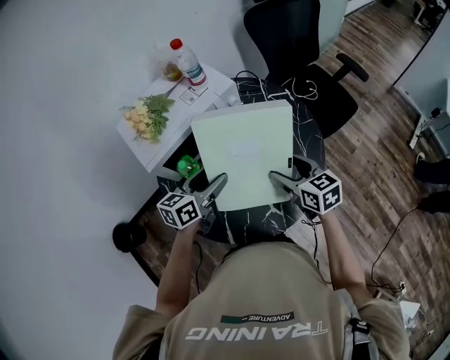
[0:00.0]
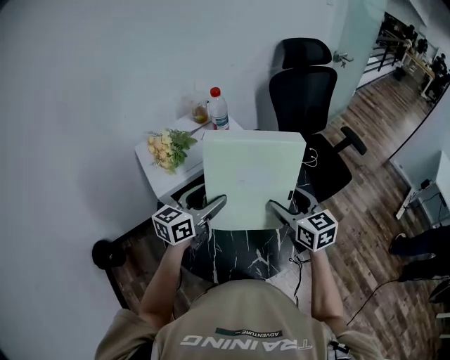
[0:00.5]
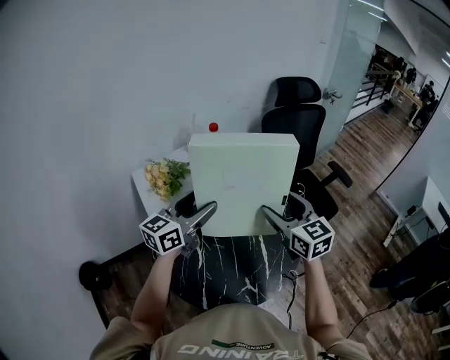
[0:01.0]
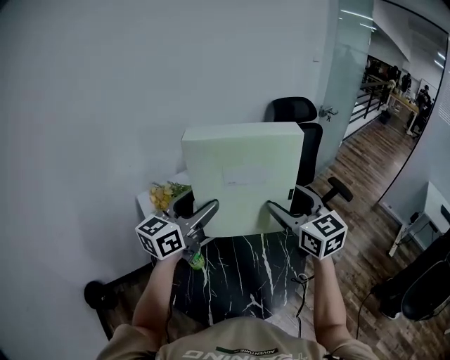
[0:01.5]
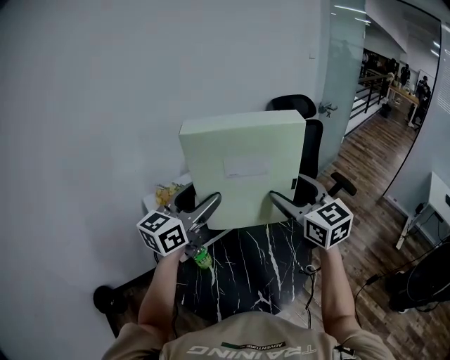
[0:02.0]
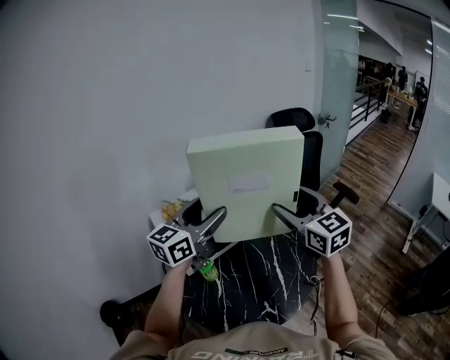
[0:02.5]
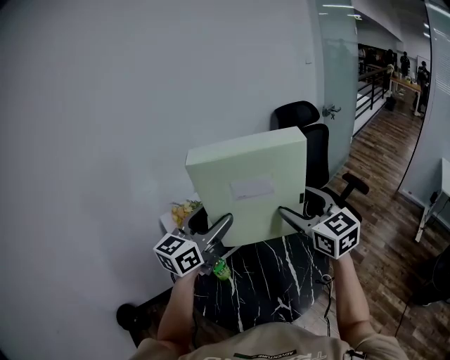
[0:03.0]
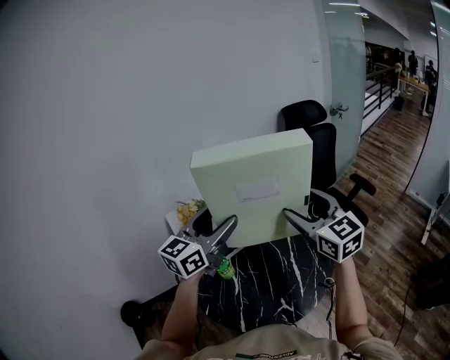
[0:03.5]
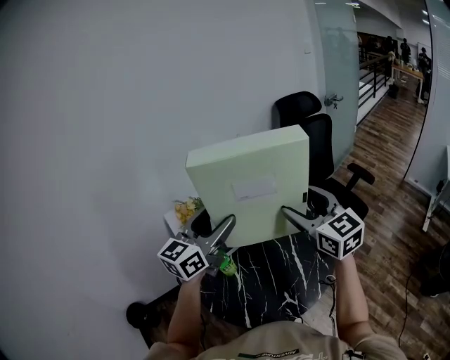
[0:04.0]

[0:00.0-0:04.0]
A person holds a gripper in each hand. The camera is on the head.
0:00.0 to 0:02.0: Both grippers travel together upward, roughly 30 cm. The left gripper turns by some 30 degrees. The right gripper rotates some 40 degrees.
0:02.0 to 0:04.0: The grippers stay close to where they were, moving slightly.

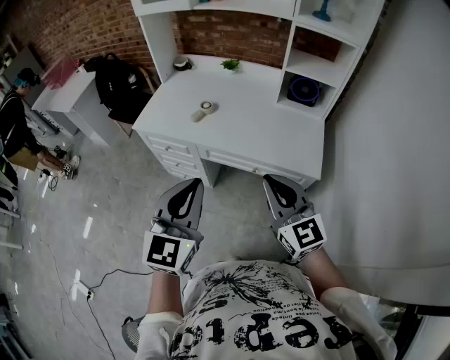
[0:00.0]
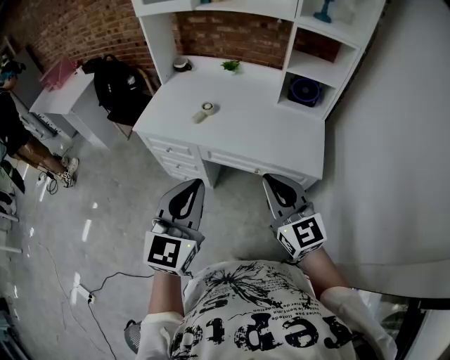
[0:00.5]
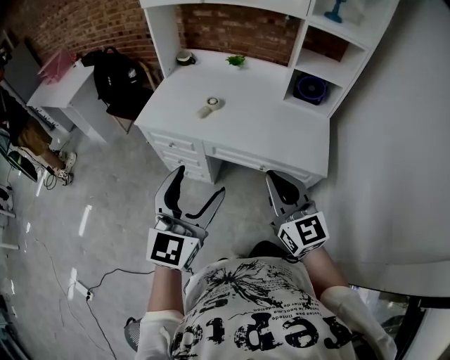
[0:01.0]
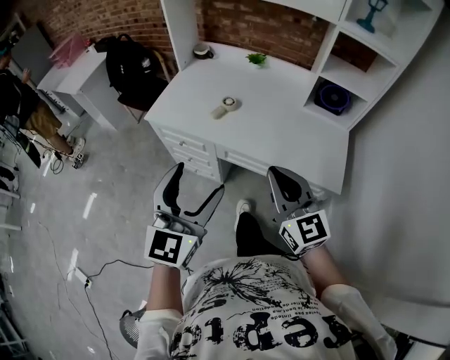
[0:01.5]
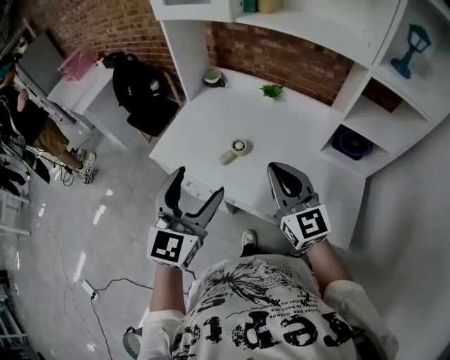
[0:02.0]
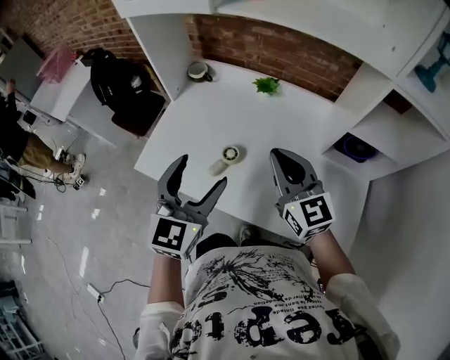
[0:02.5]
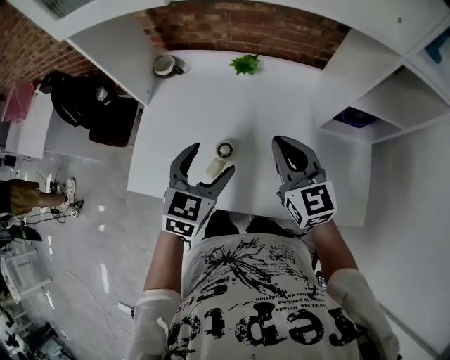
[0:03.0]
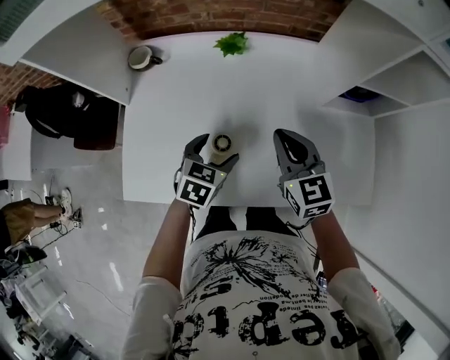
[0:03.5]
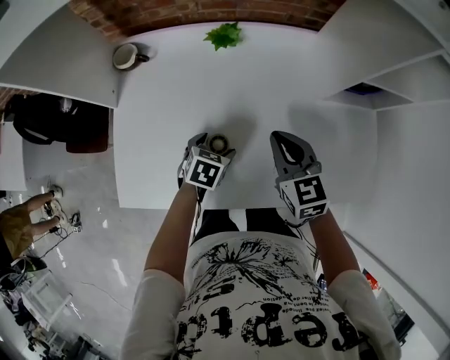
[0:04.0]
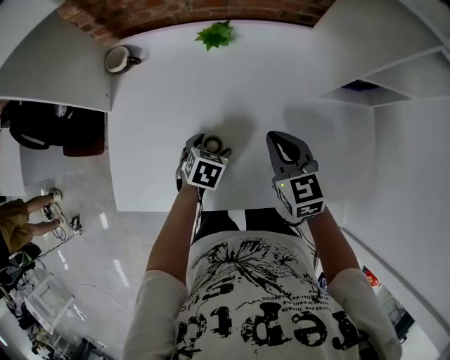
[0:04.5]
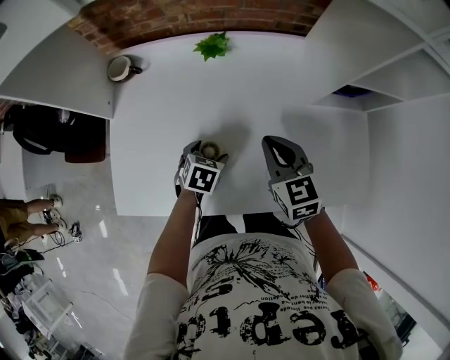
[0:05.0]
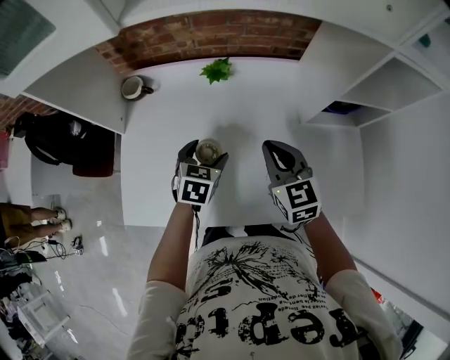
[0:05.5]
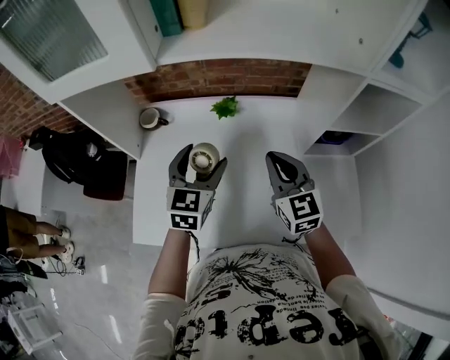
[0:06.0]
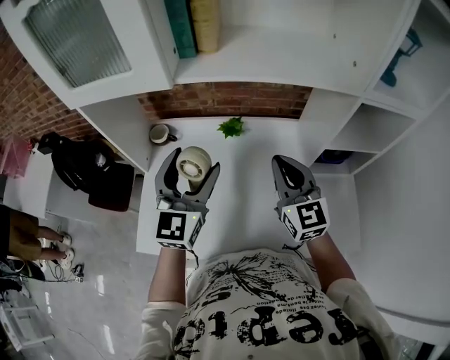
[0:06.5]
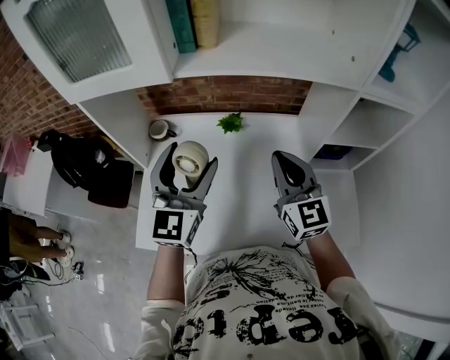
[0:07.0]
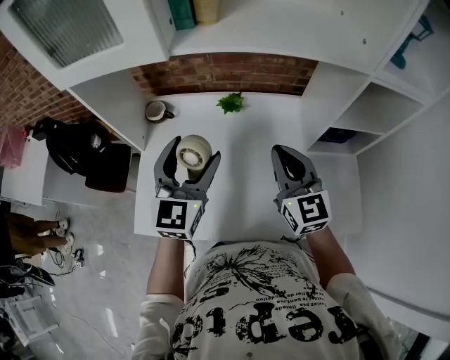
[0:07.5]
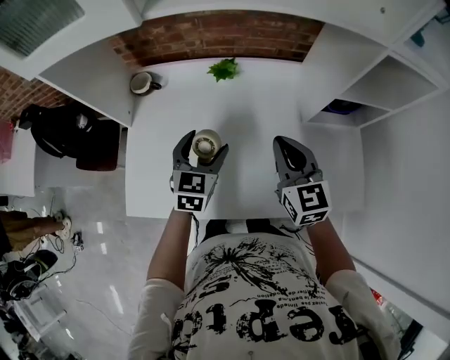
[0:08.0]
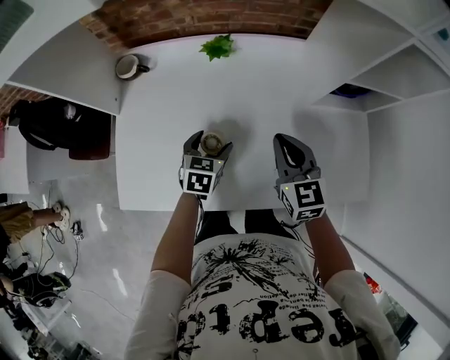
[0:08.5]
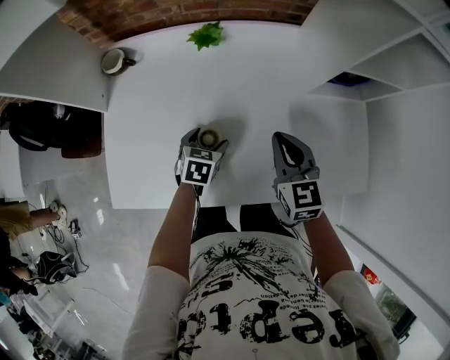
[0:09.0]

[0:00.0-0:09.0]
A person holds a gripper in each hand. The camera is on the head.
0:00.0 to 0:02.0: The grippers both shift forward by roughly 35 cm. The left gripper opens its fingers.
0:02.0 to 0:04.5: The left gripper is displaced downward by approximately 40 cm, and tilts its fingers some 60 degrees downward, while the right gripper changes place by roughly 35 cm, and swivels some 40 degrees.
0:04.5 to 0:07.0: The left gripper moves upward, some 40 cm, and tips its fingers upward by roughly 70 degrees, while the right gripper heads upward, covering some 25 cm, and tilts its fingers about 30 degrees upward.
0:07.0 to 0:09.0: The right gripper moves downward, some 20 cm, and swivels approximately 30 degrees; the left gripper moves downward, approximately 40 cm, and tilts its fingers approximately 60 degrees downward.

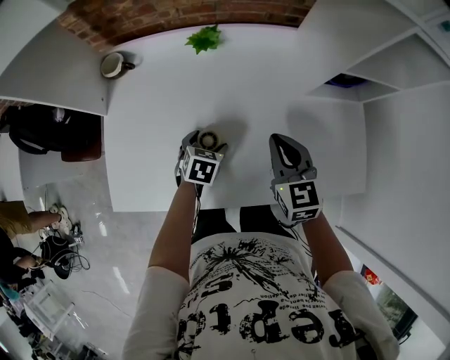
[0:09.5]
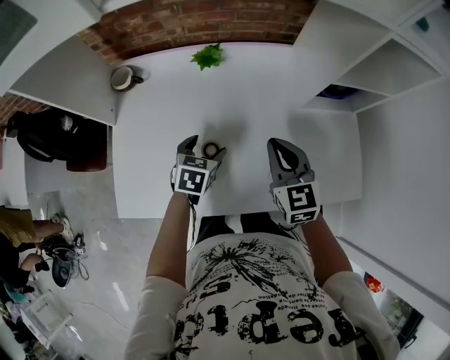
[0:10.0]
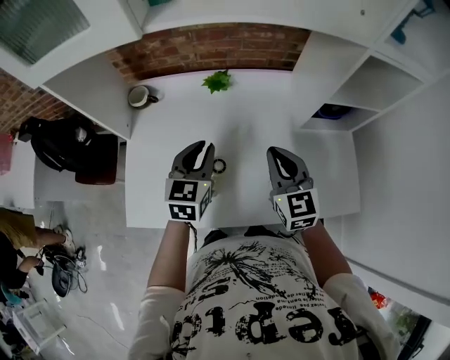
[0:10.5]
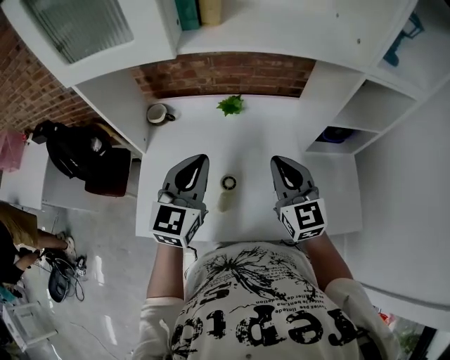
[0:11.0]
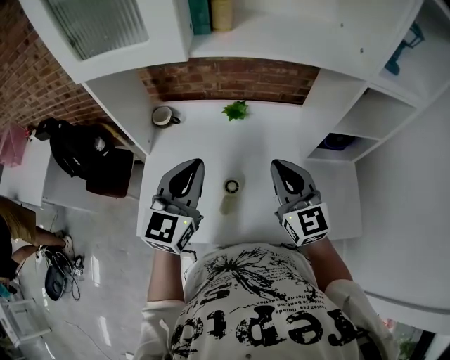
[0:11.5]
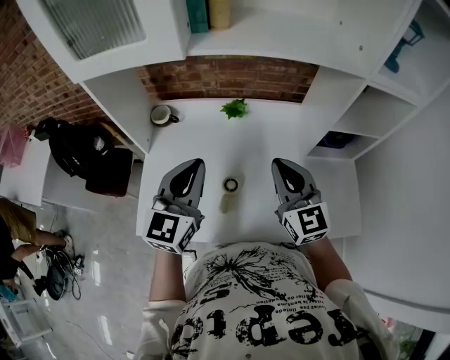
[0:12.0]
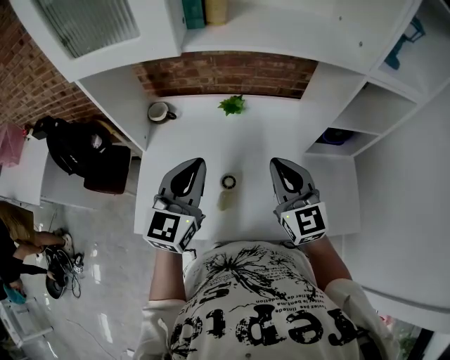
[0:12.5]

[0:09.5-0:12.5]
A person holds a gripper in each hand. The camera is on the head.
0:09.5 to 0:11.0: The left gripper shifts about 35 cm upward, tilts its fingers roughly 50 degrees upward, and closes its fingers. Meanwhile the right gripper travels upward by approximately 15 cm, and turns by about 20 degrees.
0:11.0 to 0:12.5: The grippers move only a little.

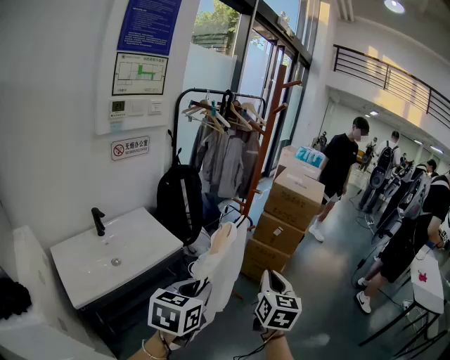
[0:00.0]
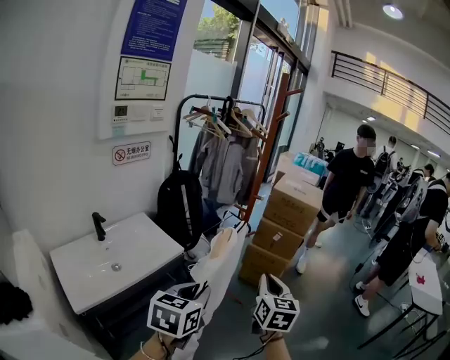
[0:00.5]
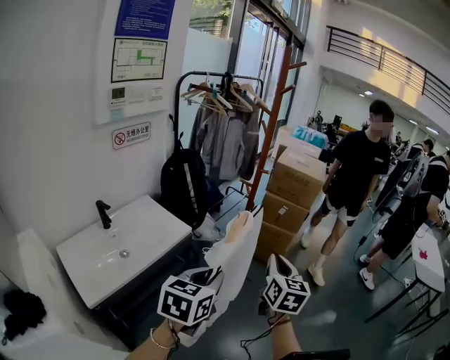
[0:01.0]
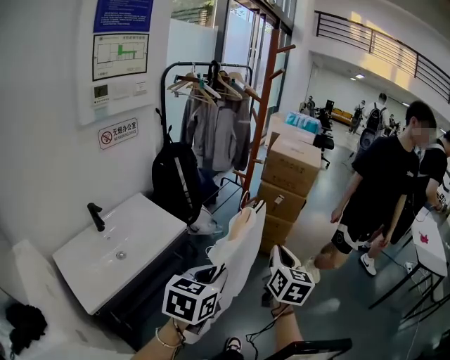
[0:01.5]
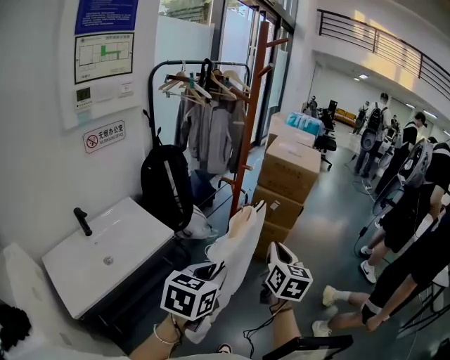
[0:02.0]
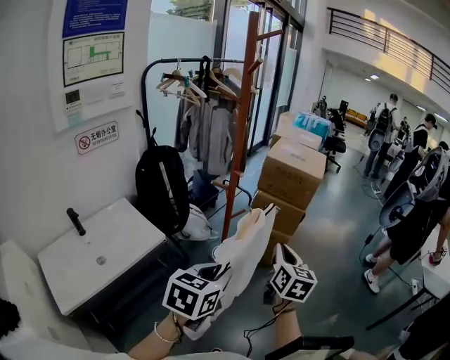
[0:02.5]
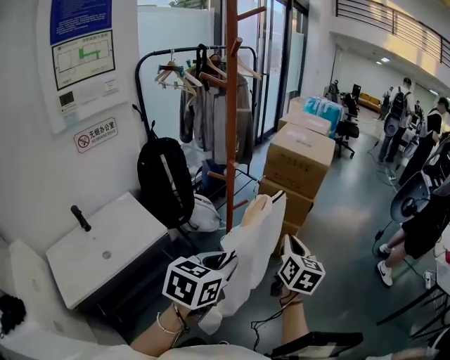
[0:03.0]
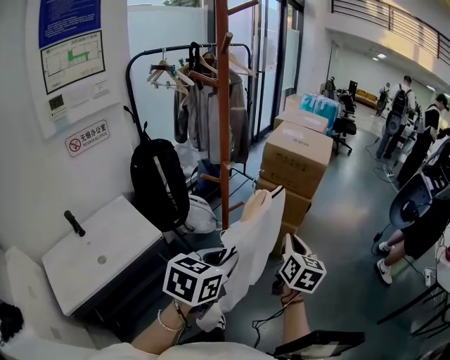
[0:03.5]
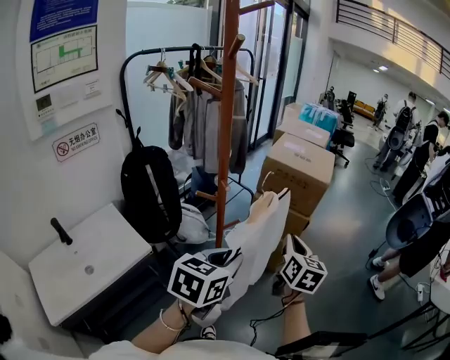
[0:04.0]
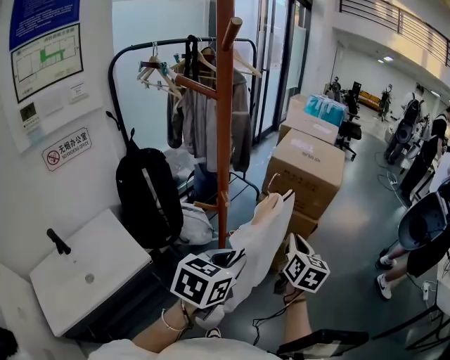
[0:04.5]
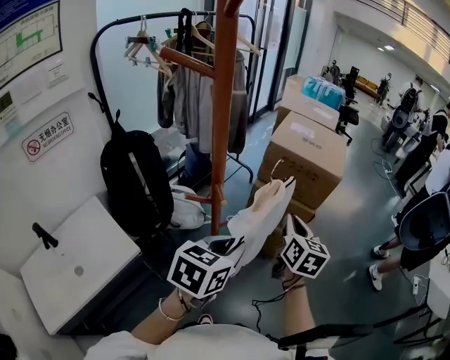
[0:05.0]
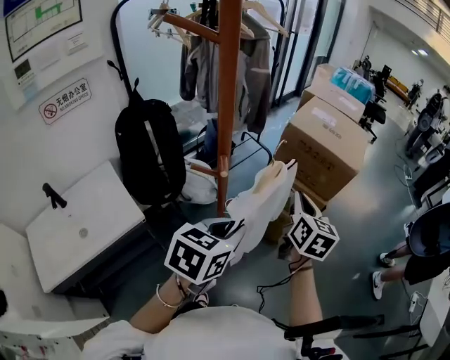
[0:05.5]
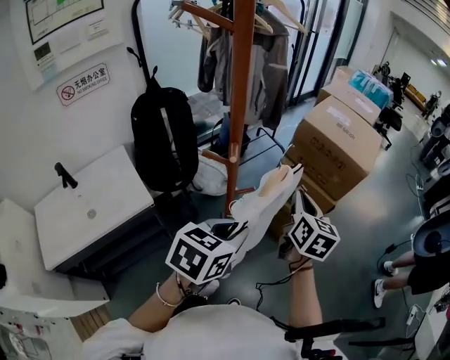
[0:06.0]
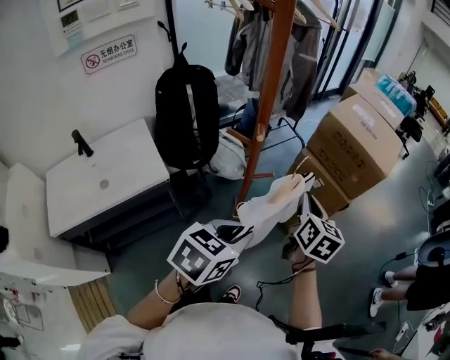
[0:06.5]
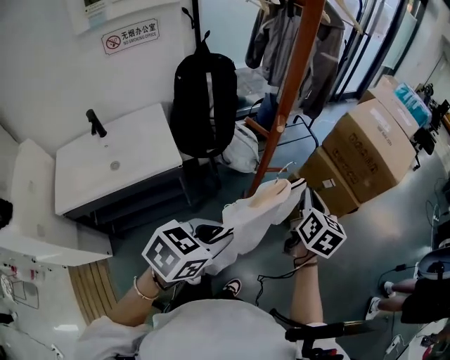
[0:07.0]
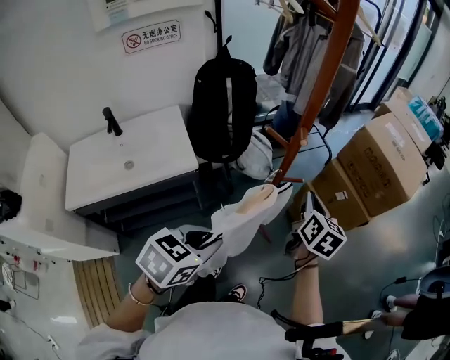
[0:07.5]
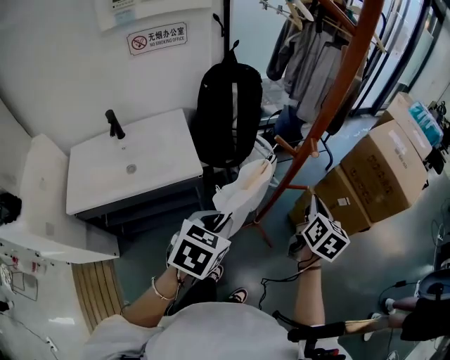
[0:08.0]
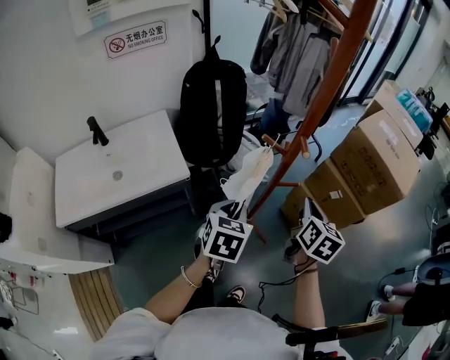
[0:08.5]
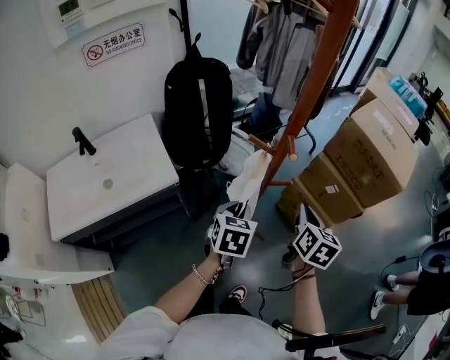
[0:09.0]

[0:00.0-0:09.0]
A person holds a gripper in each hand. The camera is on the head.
0:00.0 to 0:02.0: Both grippers move forward, some 10 cm.
0:02.0 to 0:04.5: The two grippers go about 30 cm forward.
0:04.5 to 0:07.0: The left gripper travels backward and downward by approximately 15 cm; the right gripper shifts roughly 10 cm to the left and downward, and turns by about 20 degrees.
0:07.0 to 0:09.0: The left gripper heads forward and downward, covering roughly 20 cm, and rotates about 30 degrees; the right gripper is displaced downward by some 5 cm.

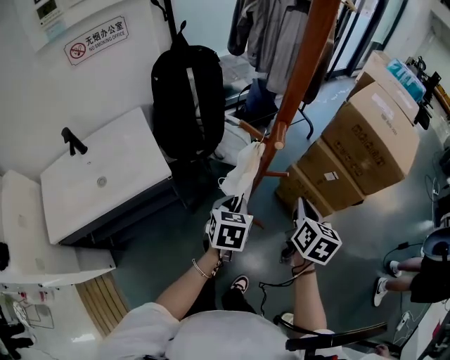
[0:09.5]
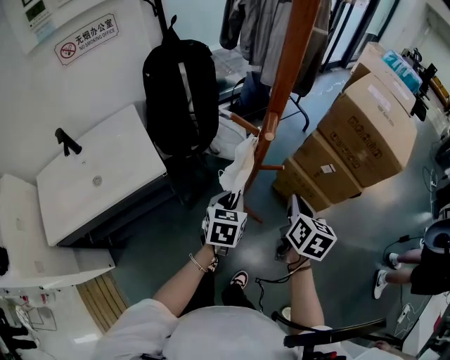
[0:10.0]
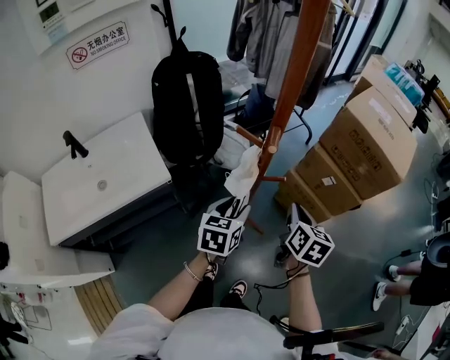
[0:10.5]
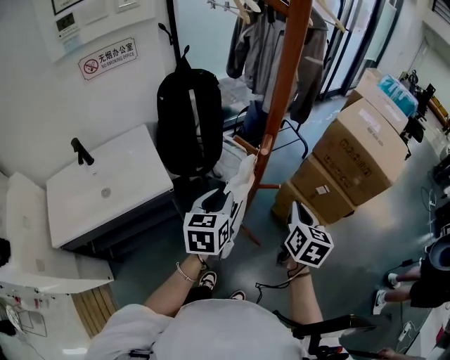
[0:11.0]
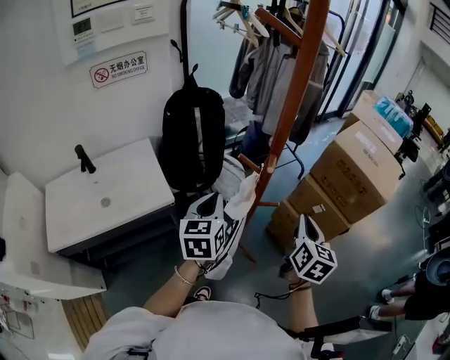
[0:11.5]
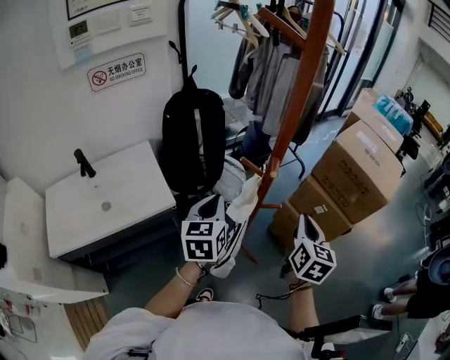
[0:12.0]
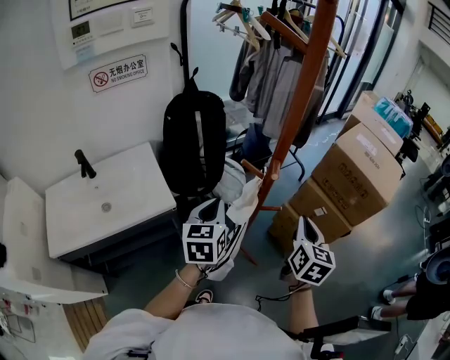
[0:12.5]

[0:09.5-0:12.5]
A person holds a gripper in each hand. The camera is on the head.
0:09.5 to 0:11.0: The left gripper goes roughly 10 cm upward, and turns by some 20 degrees.
0:11.0 to 0:12.5: The left gripper changes place by some 5 cm, and closes.
